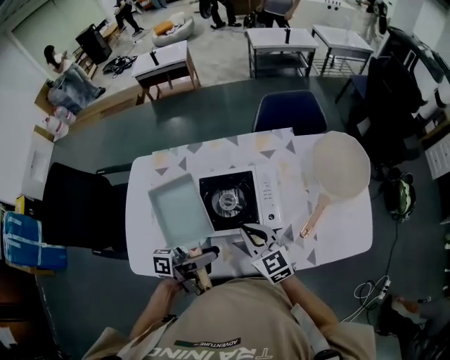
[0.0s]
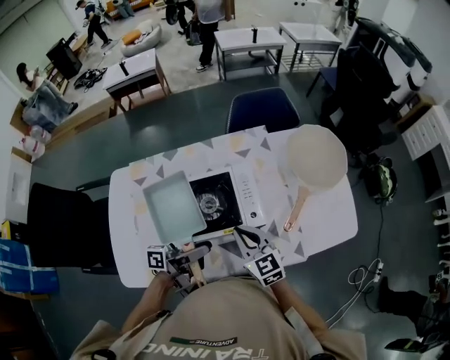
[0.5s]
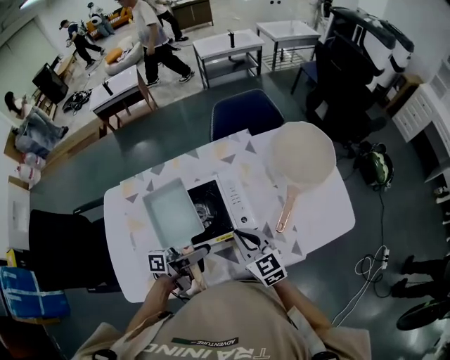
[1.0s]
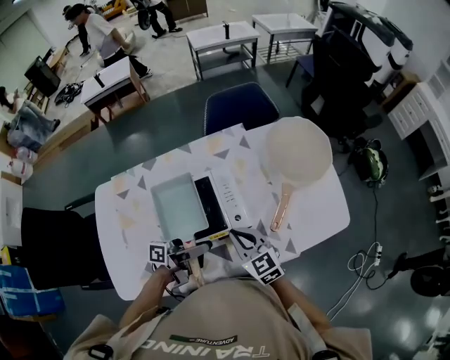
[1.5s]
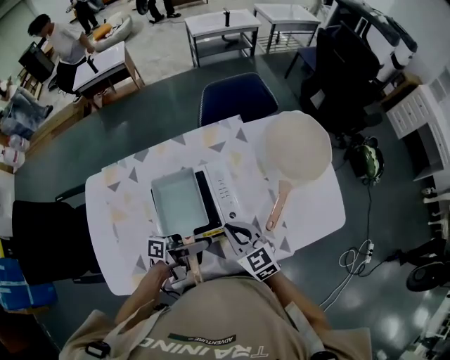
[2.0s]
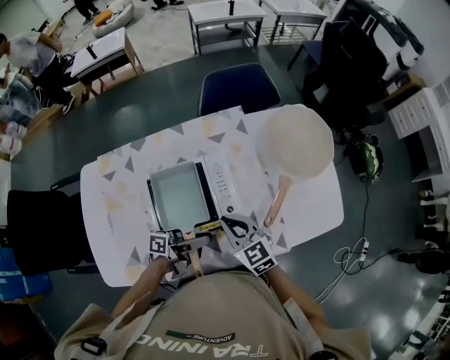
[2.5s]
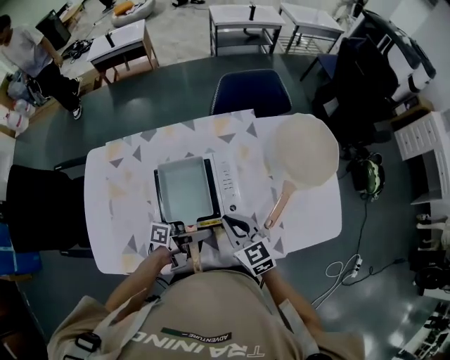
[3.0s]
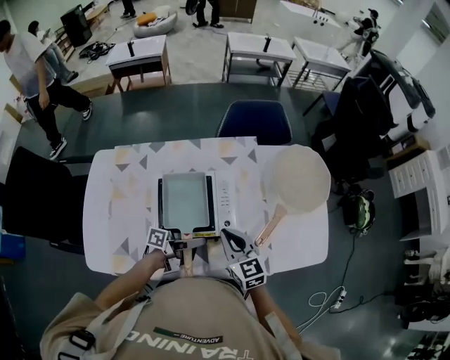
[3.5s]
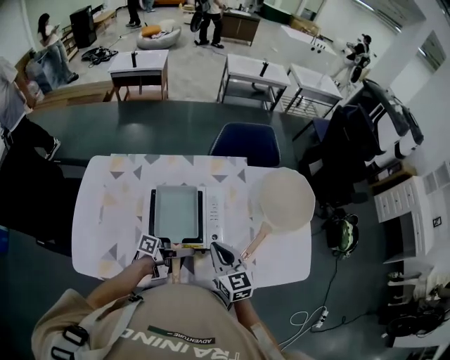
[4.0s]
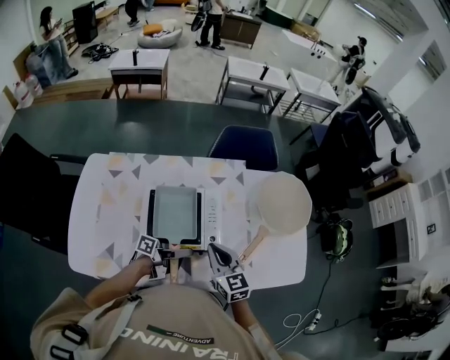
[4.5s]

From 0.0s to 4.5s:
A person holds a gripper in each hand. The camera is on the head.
From 0.0s to 2.0s: The right gripper ends up approximately 10 cm from where it was.

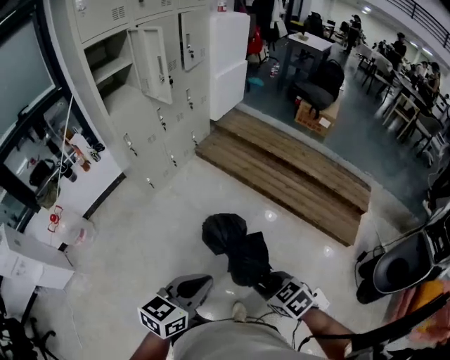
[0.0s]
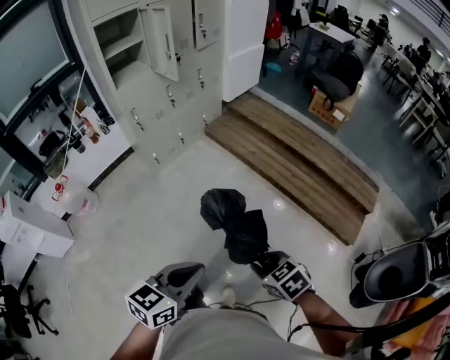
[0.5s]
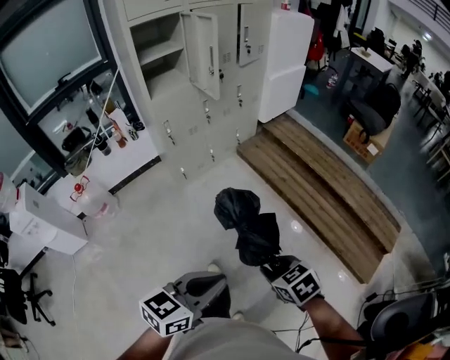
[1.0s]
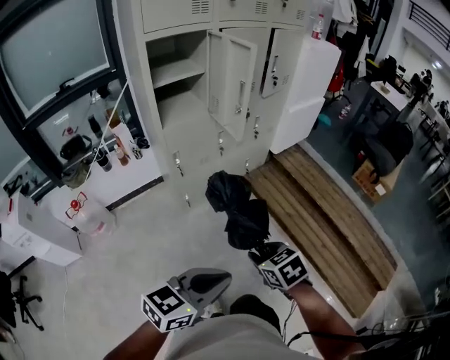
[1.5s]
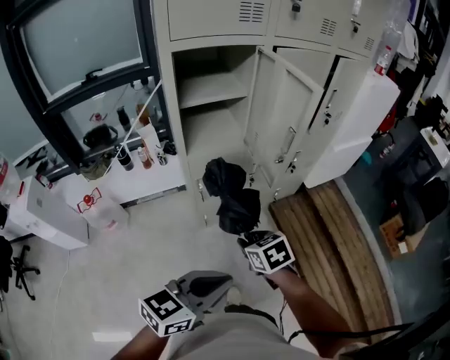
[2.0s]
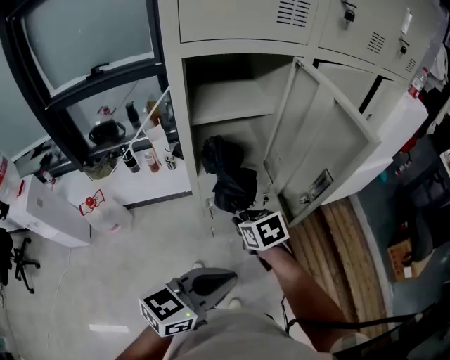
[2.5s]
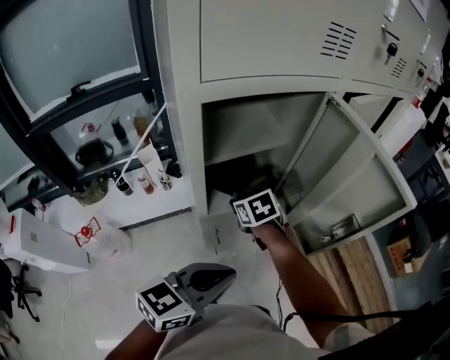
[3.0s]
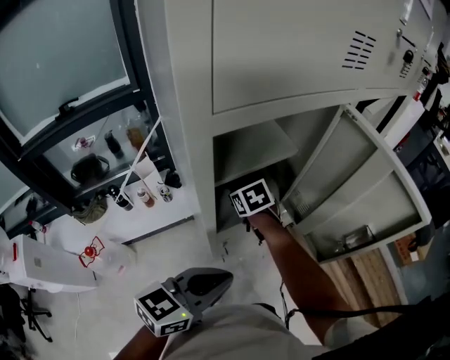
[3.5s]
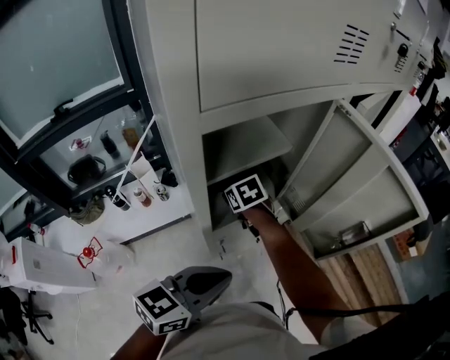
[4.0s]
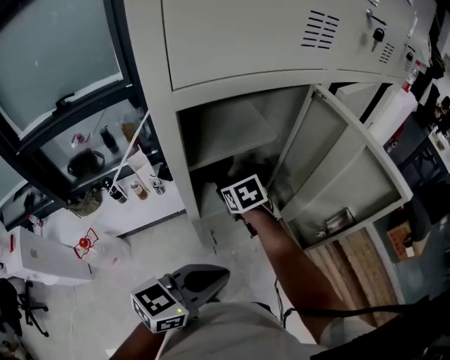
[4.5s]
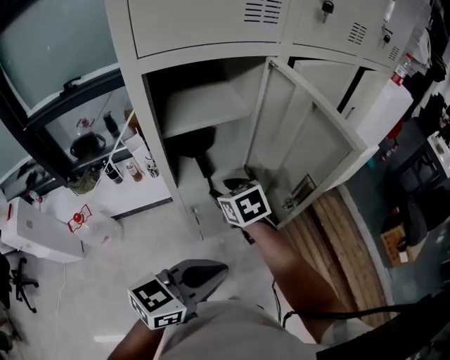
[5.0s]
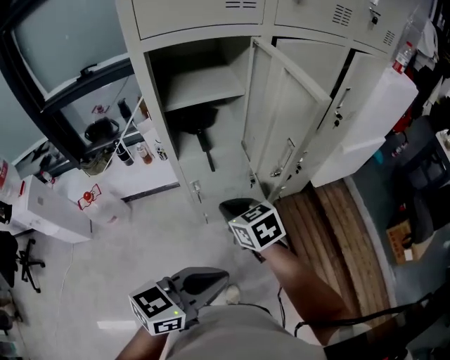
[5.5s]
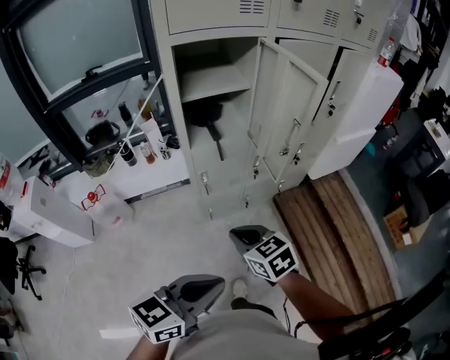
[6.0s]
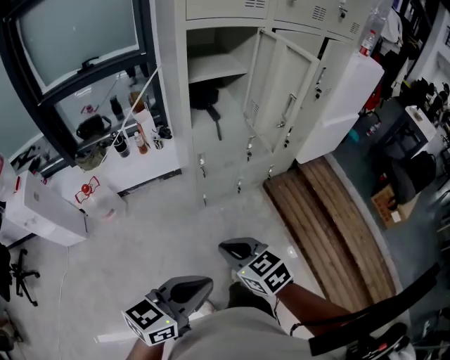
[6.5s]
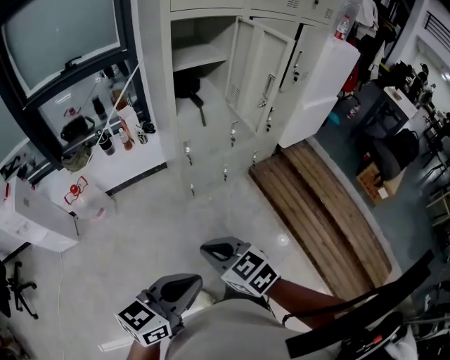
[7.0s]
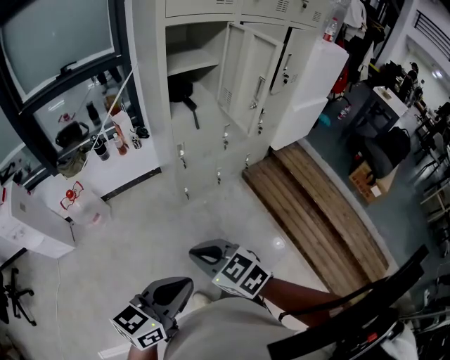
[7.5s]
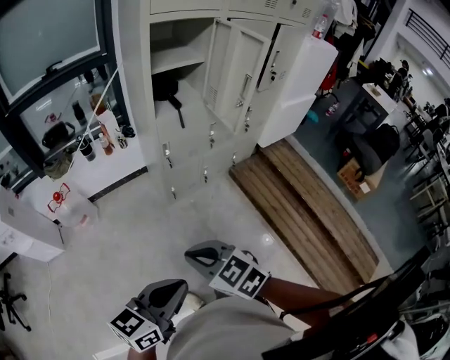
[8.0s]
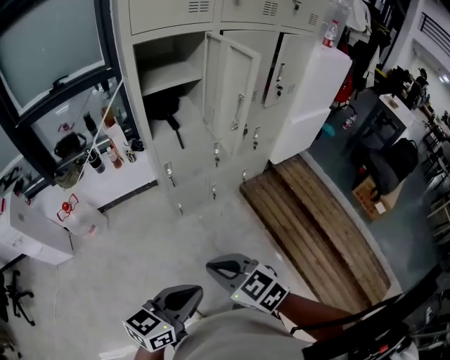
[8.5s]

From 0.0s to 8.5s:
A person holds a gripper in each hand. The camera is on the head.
From 0.0s to 2.0s: Both grippers are carried forward, approximately 60 cm. The left gripper rotates approximately 20 degrees.
From 2.0s to 4.0s: The two grippers go roughly 40 cm forward and to the left.
From 4.0s to 6.5s: The pair of grippers is taken backward, roughly 50 cm. The right gripper turns by some 30 degrees, and closes its fingers.
From 6.5s to 8.5s: The left gripper moves to the right, roughly 10 cm. The right gripper is displaced to the right and backward by about 10 cm.

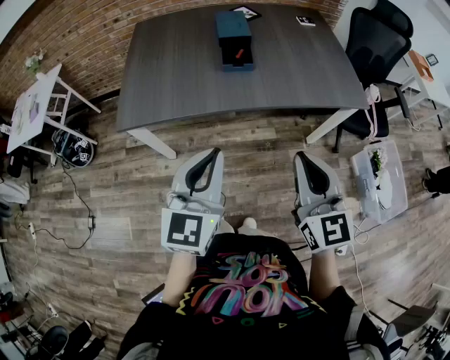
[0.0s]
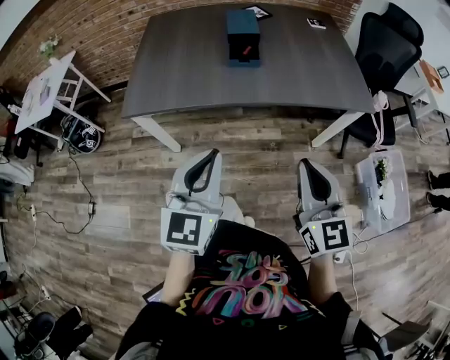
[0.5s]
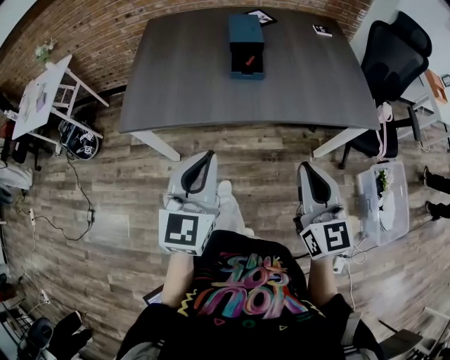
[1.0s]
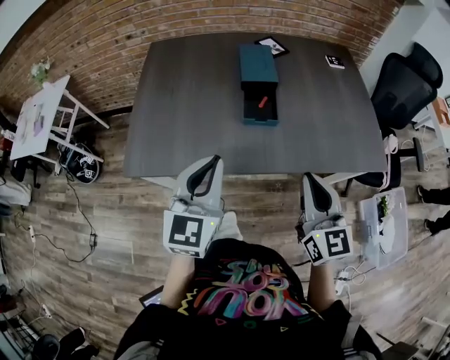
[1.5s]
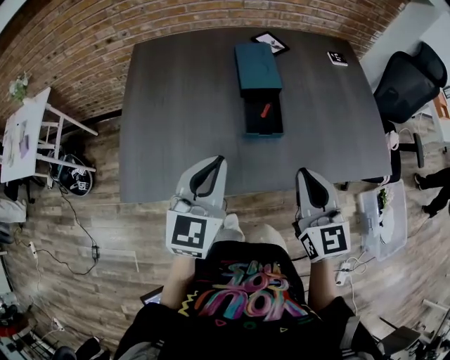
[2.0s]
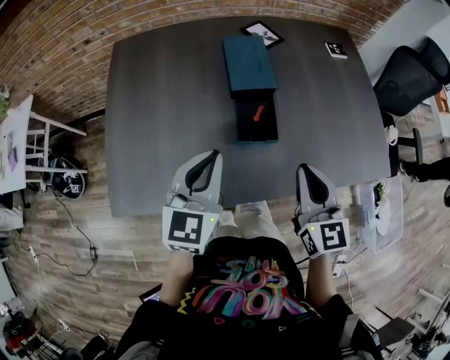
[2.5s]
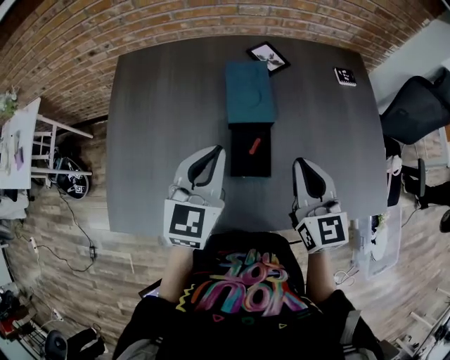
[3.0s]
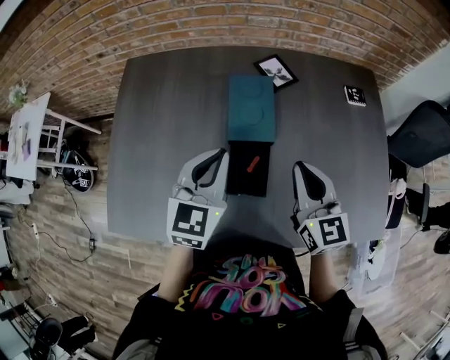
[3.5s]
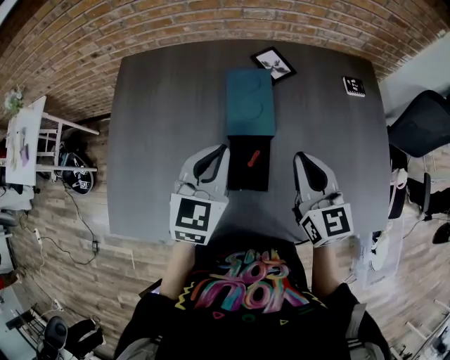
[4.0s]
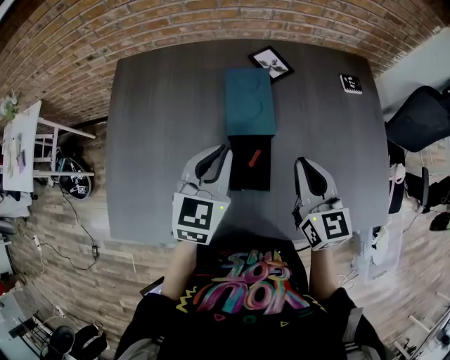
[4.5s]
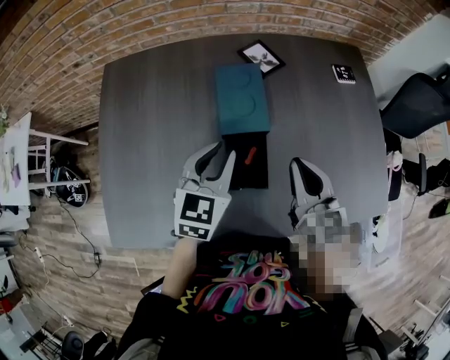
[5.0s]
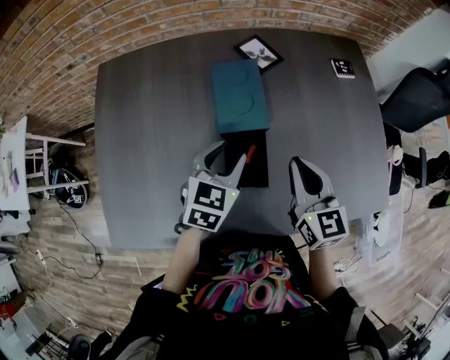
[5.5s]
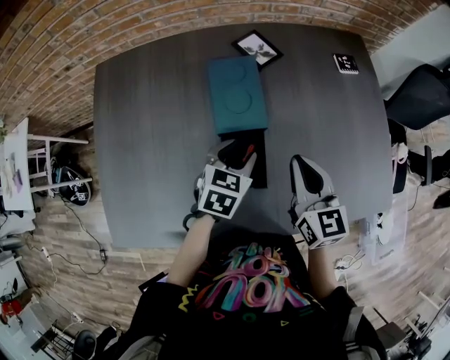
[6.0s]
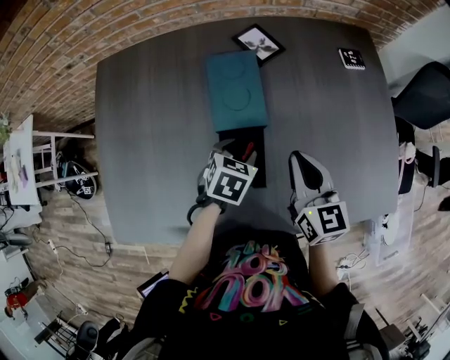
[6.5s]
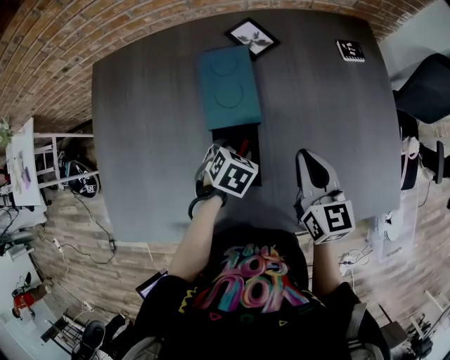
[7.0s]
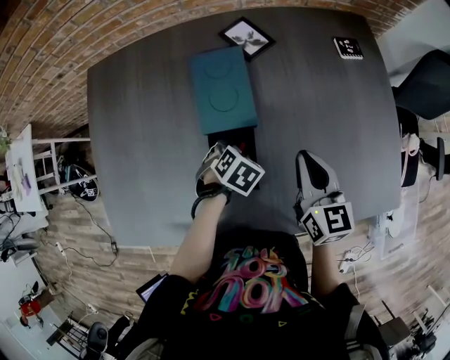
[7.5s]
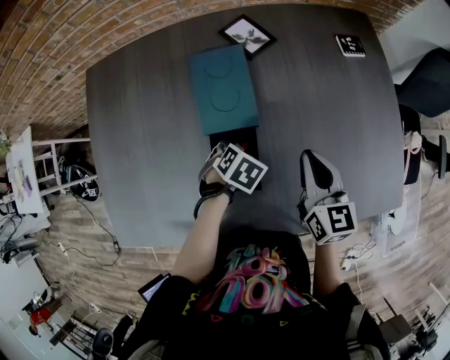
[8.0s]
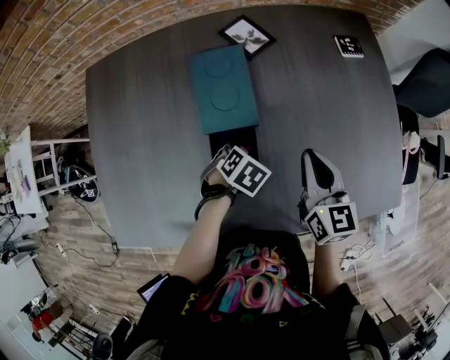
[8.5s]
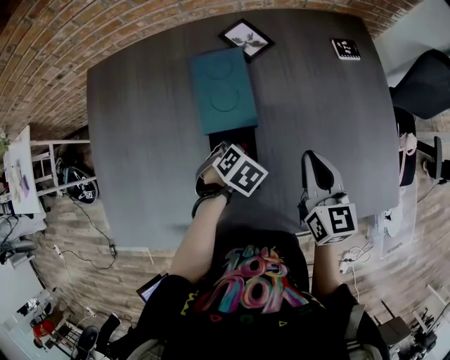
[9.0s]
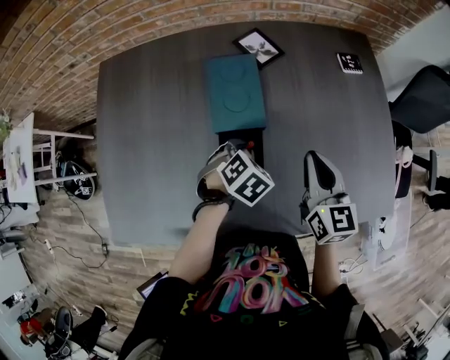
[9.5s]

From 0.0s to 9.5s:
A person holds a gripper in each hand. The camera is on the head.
From 0.0s to 2.0s: Both grippers travel together forward, roughly 30 cm.
From 2.0s to 4.0s: The two grippers go some 25 cm forward.
From 4.0s to 5.5s: The left gripper travels downward by roughly 10 cm, and opens its fingers.
From 5.5s to 7.5s: The right gripper ends up some 10 cm from where it was. The left gripper is displaced downward by about 15 cm, and tilts its fingers roughly 40 degrees downward.
From 7.5s to 9.5s: The left gripper travels upward by about 5 cm, and closes its fingers.

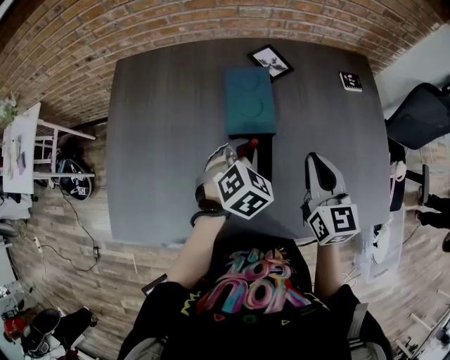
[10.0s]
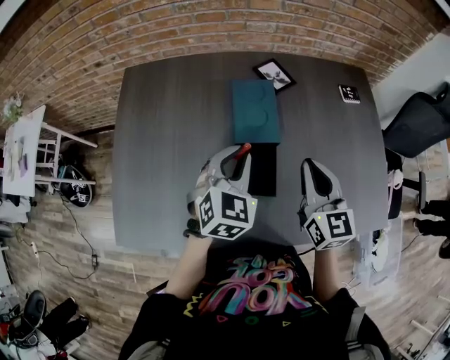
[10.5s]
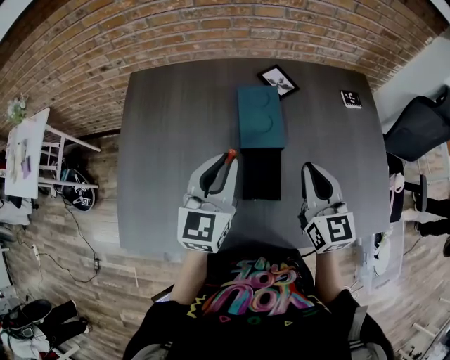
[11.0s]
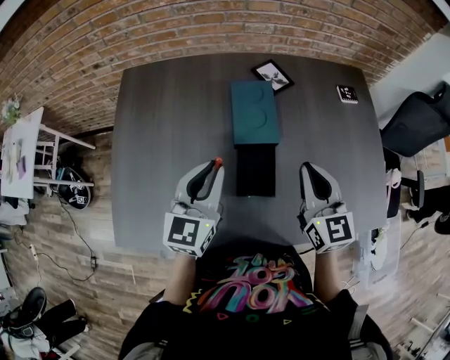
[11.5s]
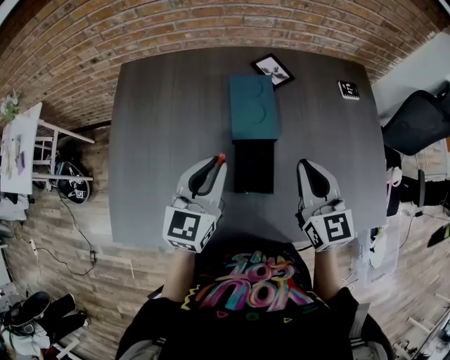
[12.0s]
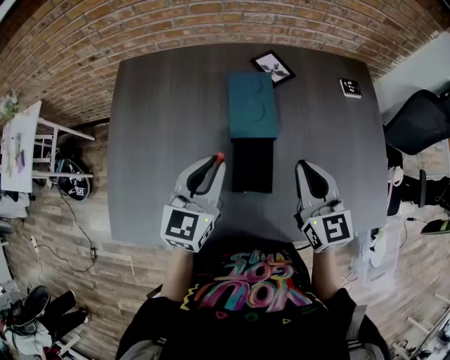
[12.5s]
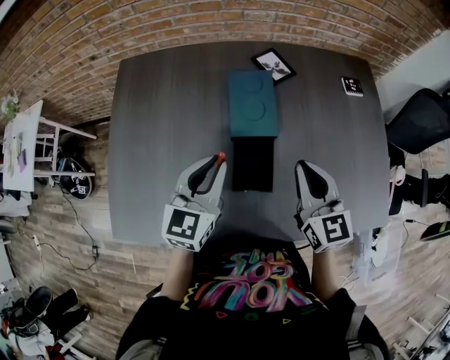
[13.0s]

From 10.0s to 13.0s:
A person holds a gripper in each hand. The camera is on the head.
From 10.0s to 11.5s: The right gripper shifts by approximately 5 cm, while the left gripper goes roughly 15 cm to the left and upward, and points its fingers about 40 degrees further upward.
From 11.5s to 13.0s: The grippers make only small movements.

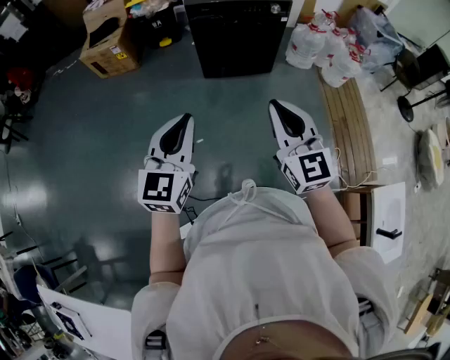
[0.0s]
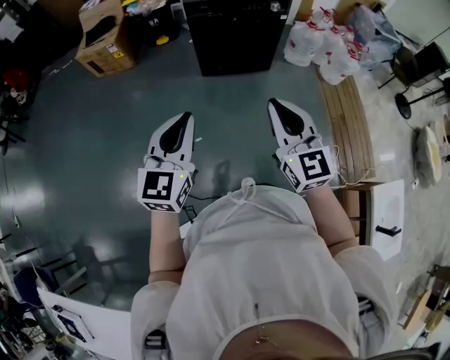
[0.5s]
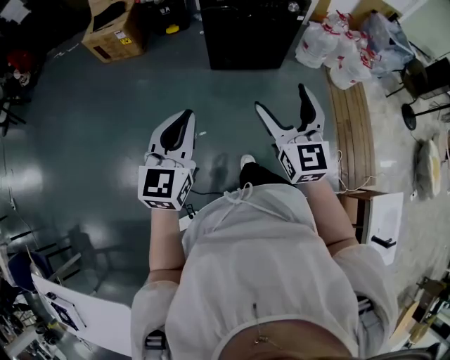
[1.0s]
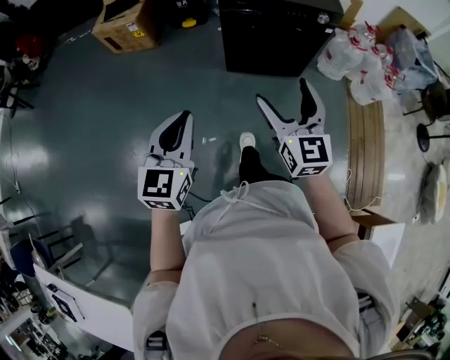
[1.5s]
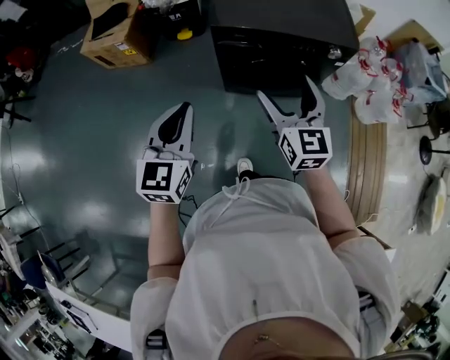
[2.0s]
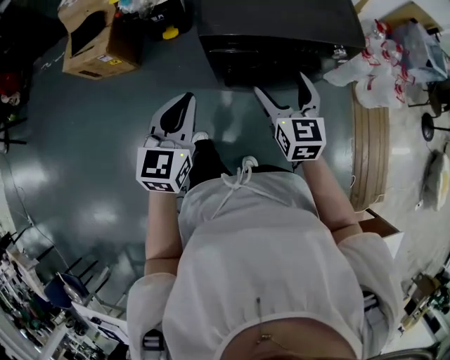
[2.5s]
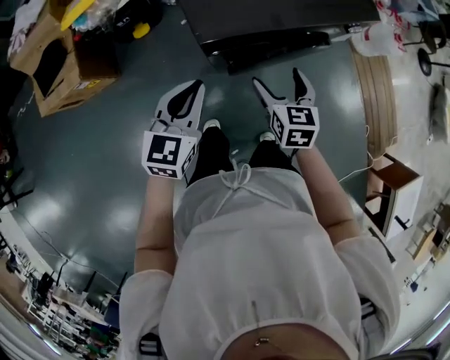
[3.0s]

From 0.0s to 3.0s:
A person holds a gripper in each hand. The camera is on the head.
From 0.0s to 1.5s: The right gripper moves forward, roughly 25 cm, and opens up; the left gripper goes about 20 cm forward and to the left.
From 1.5s to 3.0s: The pair of grippers is taken roughly 50 cm. The left gripper changes its angle by approximately 30 degrees; the right gripper points its fingers approximately 30 degrees further downward.
